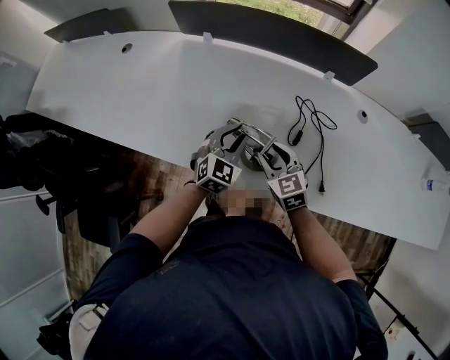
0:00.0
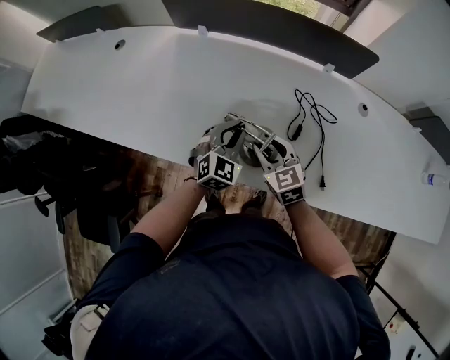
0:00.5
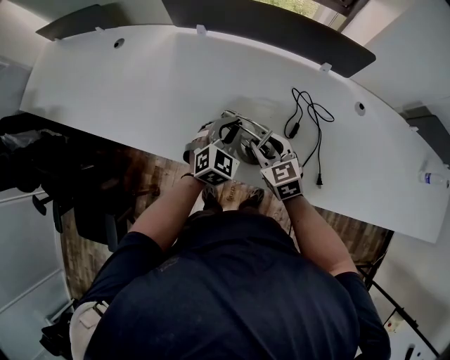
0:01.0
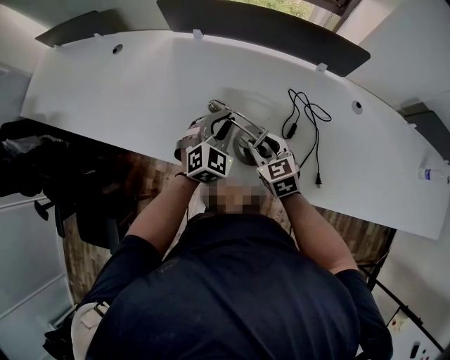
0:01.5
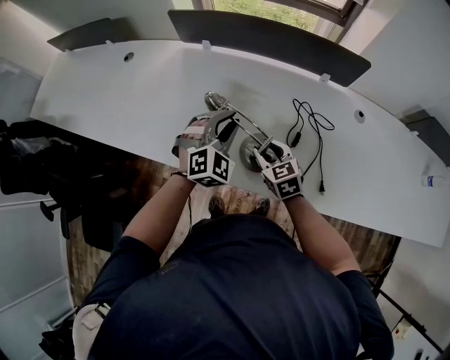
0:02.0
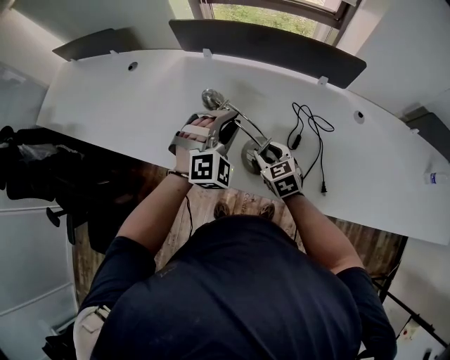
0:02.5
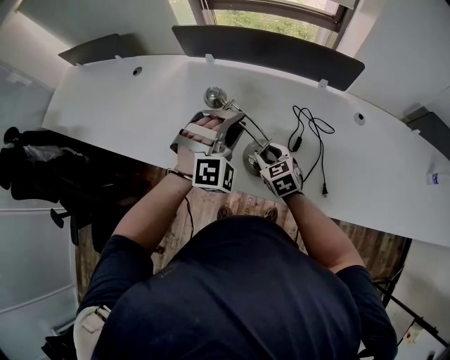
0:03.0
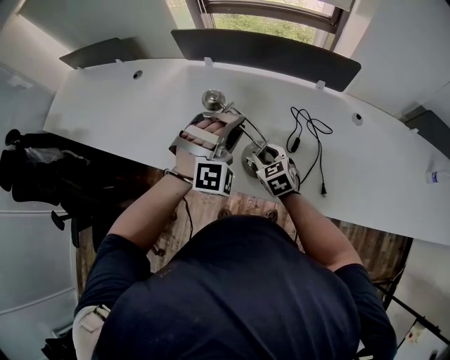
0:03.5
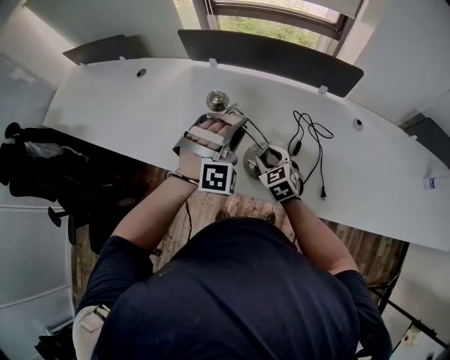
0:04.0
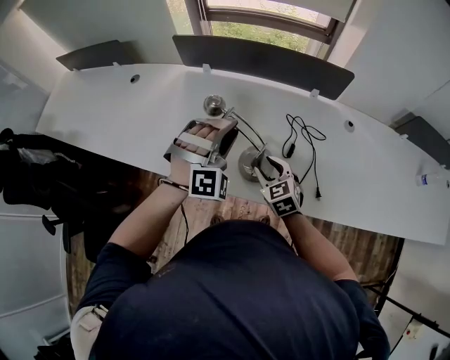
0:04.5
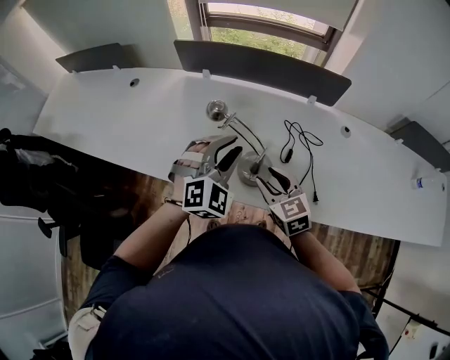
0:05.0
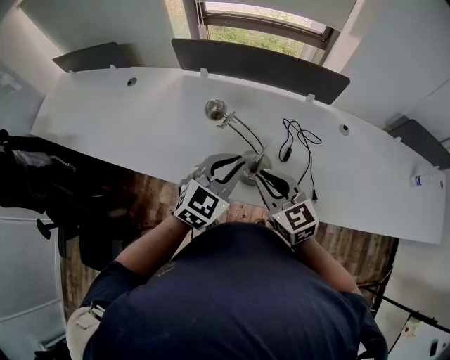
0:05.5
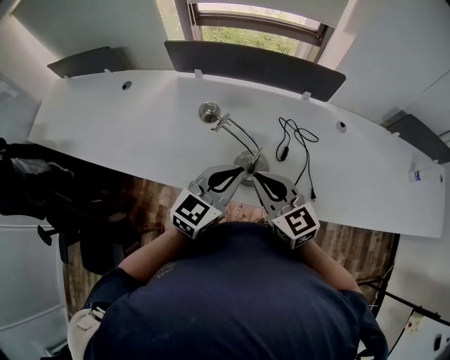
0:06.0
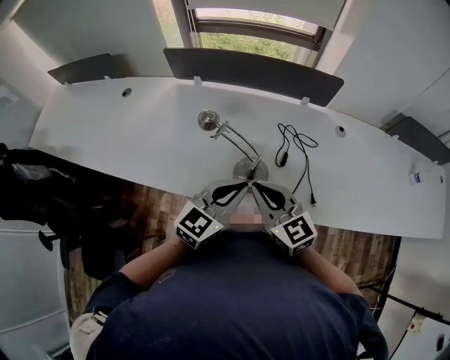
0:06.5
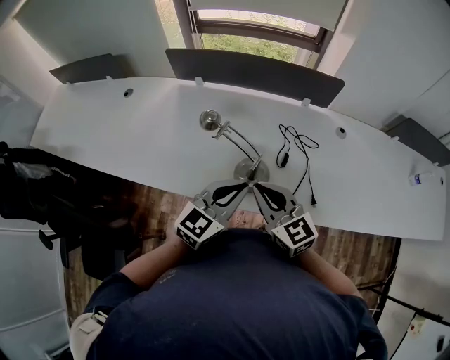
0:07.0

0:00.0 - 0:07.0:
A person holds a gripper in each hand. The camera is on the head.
0:00.0 - 0:02.0: The left gripper is displaced upward by some 5 cm, and turns by about 30 degrees.
0:02.0 - 0:03.5: The left gripper goes about 5 cm upward, and swivels roughly 30 degrees.
0:03.5 - 0:05.0: The right gripper heads upward and backward, covering some 15 cm. The left gripper moves approximately 5 cm, and changes its angle by roughly 30 degrees.
0:05.0 - 0:07.0: The left gripper goes approximately 5 cm backward, rotates around the line of its fingers by approximately 50 degrees, counterclockwise from behind, and closes its fingers, while the right gripper travels upward by approximately 10 cm, and closes its fingers.

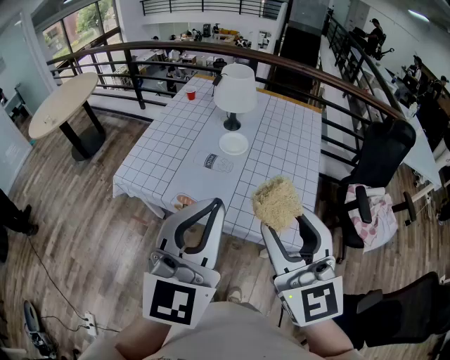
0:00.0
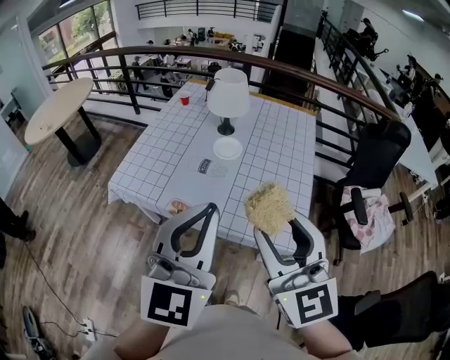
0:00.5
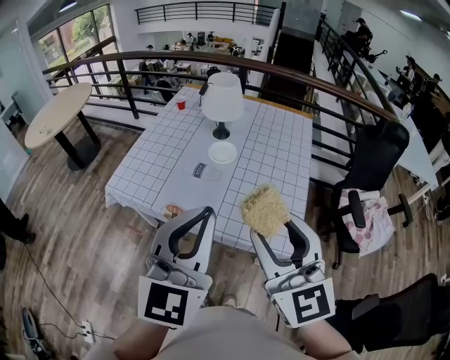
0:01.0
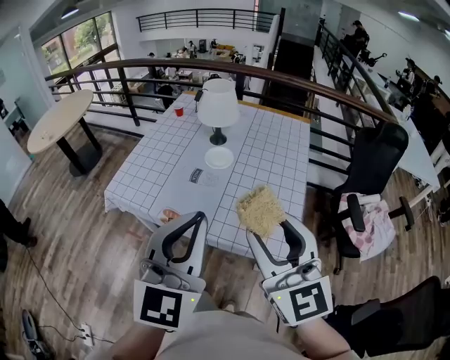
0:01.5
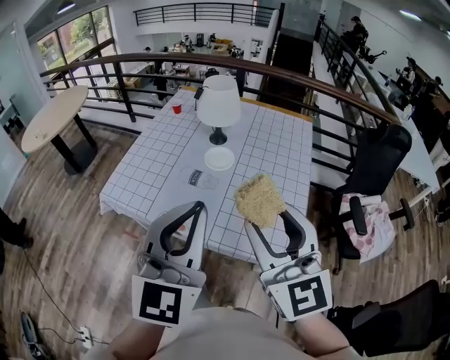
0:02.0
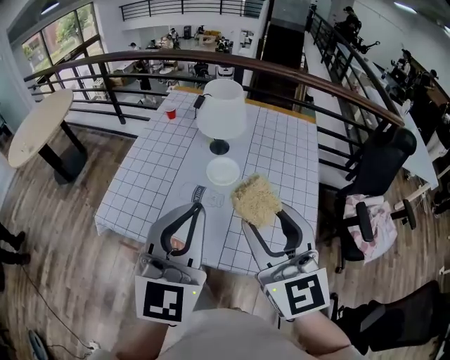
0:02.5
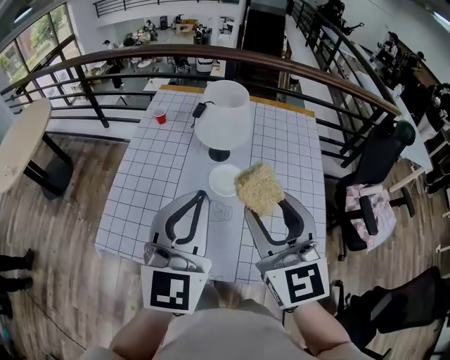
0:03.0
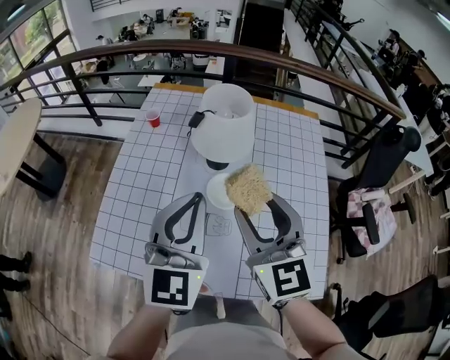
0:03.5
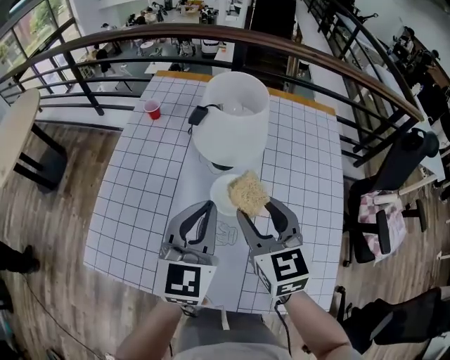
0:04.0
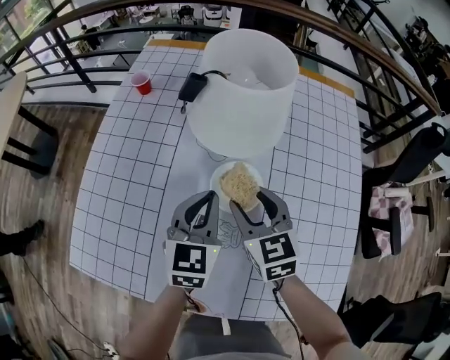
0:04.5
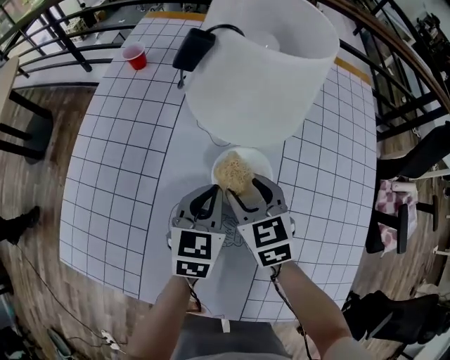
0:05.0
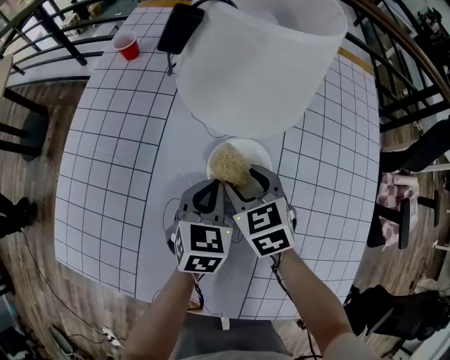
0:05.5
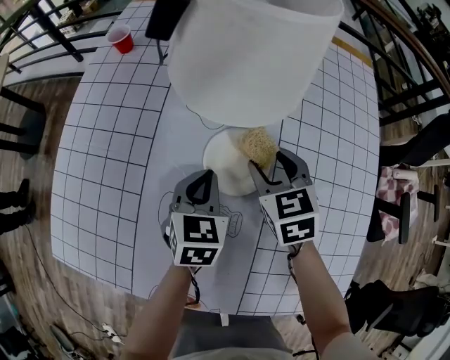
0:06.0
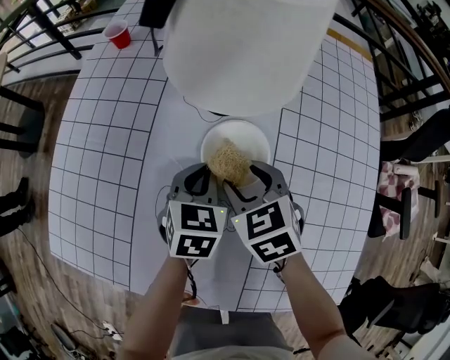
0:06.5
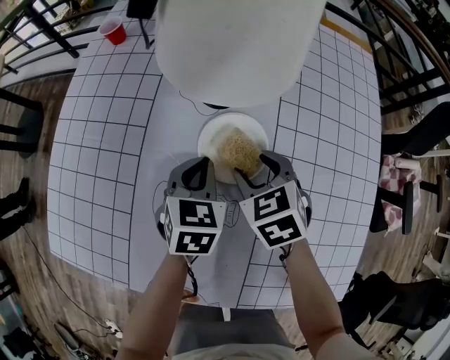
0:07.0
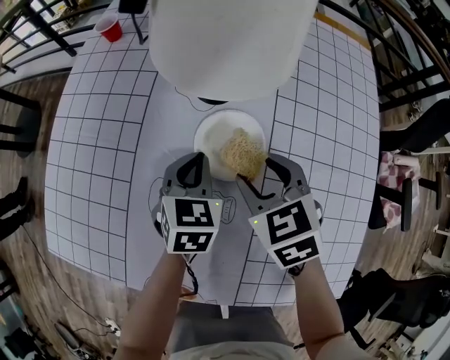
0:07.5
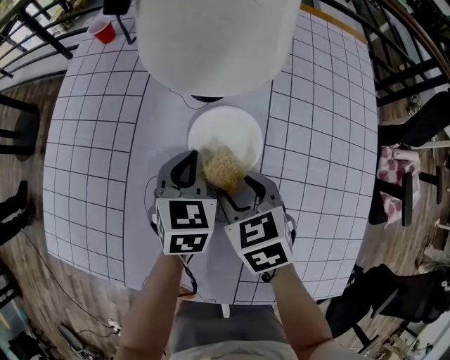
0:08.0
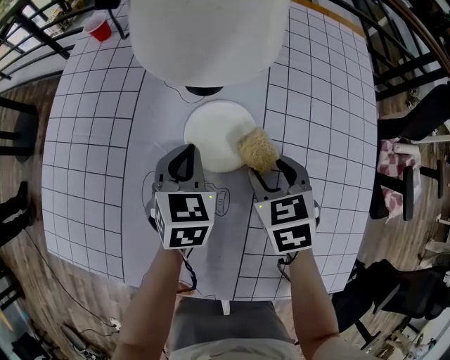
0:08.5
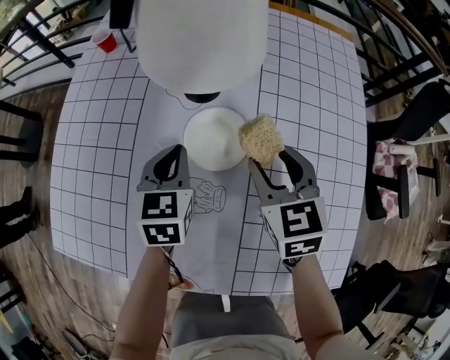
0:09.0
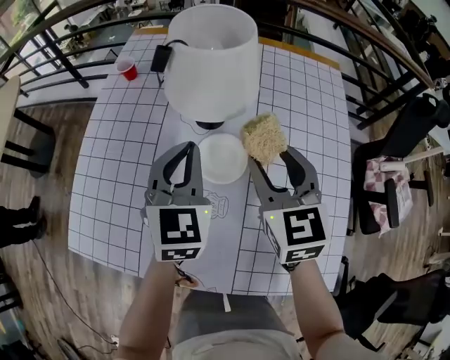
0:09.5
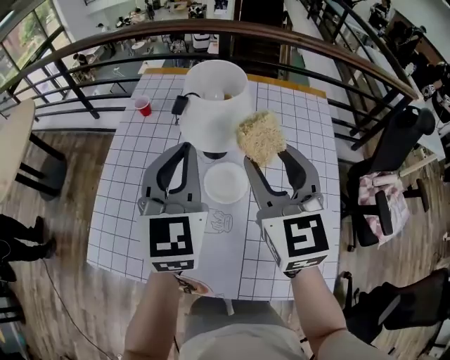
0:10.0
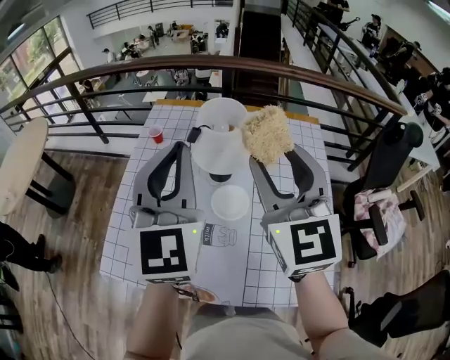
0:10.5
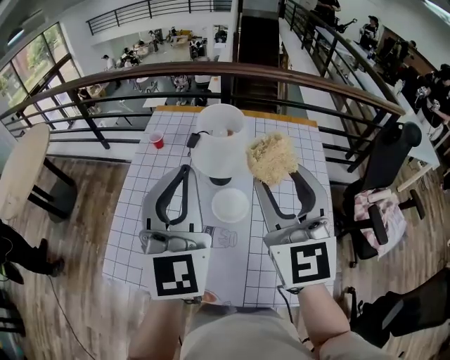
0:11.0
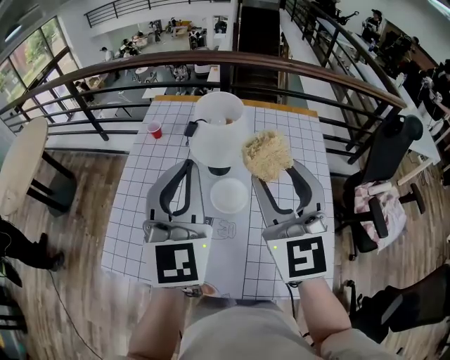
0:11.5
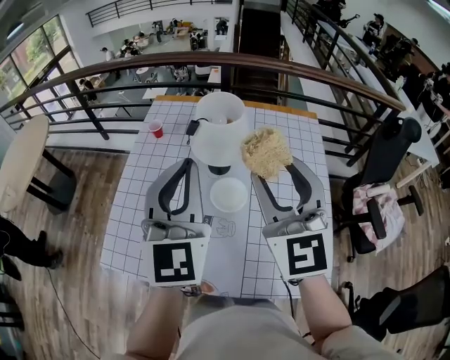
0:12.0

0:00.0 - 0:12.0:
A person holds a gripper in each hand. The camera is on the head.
0:00.0 - 0:02.0: Both grippers move forward, about 5 cm.
0:02.0 - 0:04.0: Both grippers travel together forward and downward, about 40 cm. The right gripper swivels approximately 30 degrees.
0:04.0 - 0:06.0: The left gripper heads downward, covering about 30 cm, and turns by some 30 degrees. Meanwhile the right gripper travels downward and forward by approximately 25 cm, and turns by some 20 degrees.
0:06.0 - 0:08.0: The right gripper moves backward, roughly 10 cm.
0:08.0 - 0:10.0: The grippers both shift upward by some 35 cm. The right gripper angles its fingers upward, by some 40 degrees. The left gripper tips its fingers upward by roughly 30 degrees.
0:10.0 - 0:12.0: The grippers both shift upward and backward by approximately 15 cm.

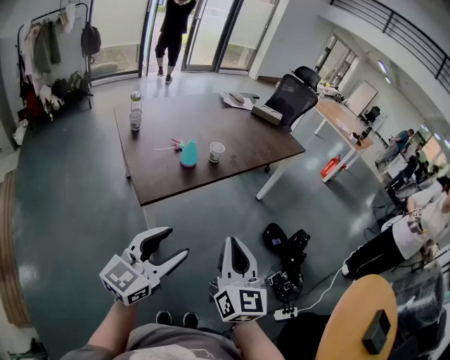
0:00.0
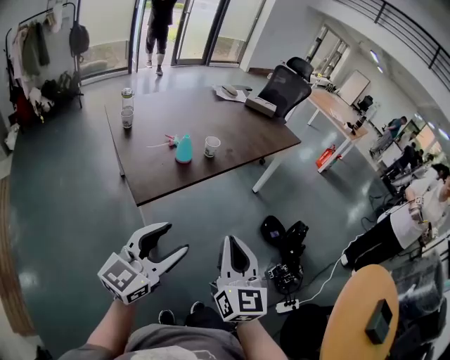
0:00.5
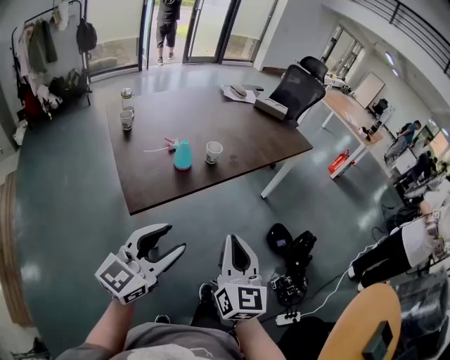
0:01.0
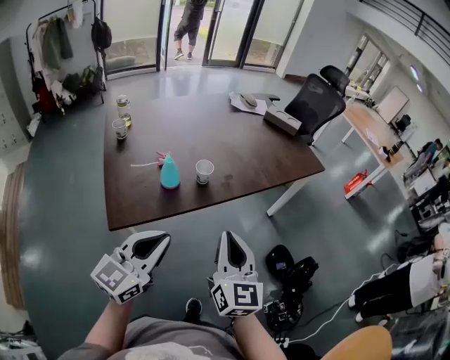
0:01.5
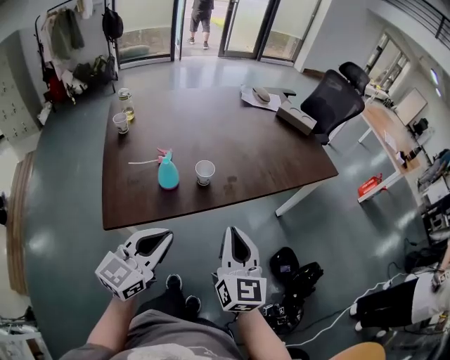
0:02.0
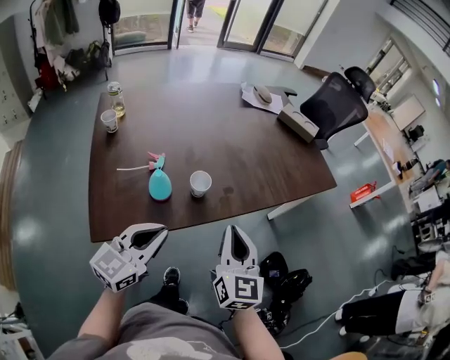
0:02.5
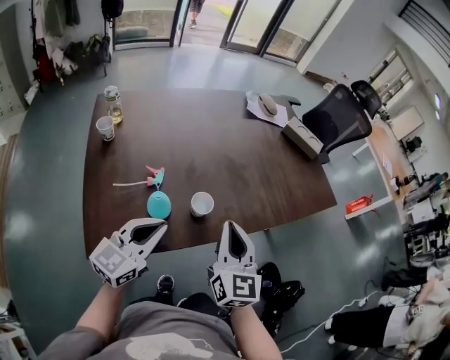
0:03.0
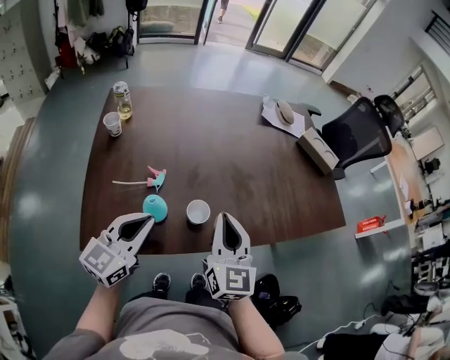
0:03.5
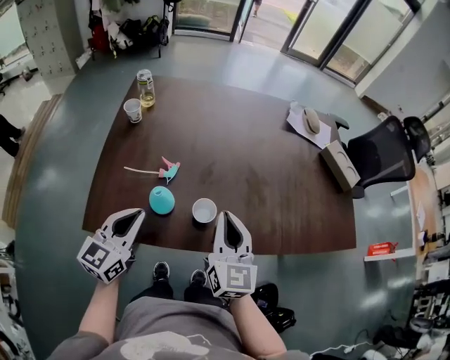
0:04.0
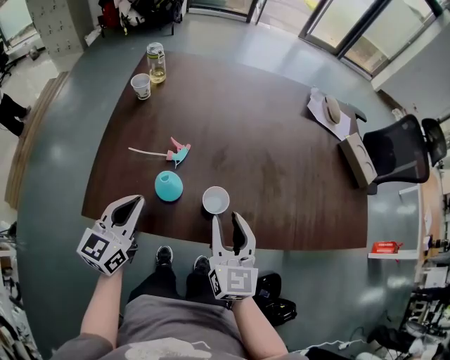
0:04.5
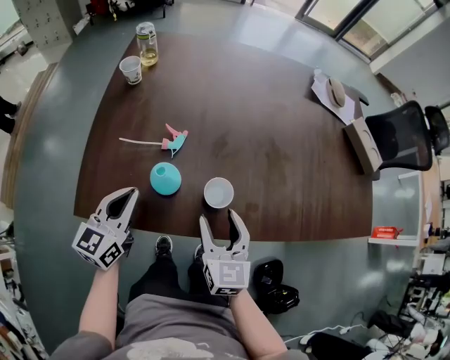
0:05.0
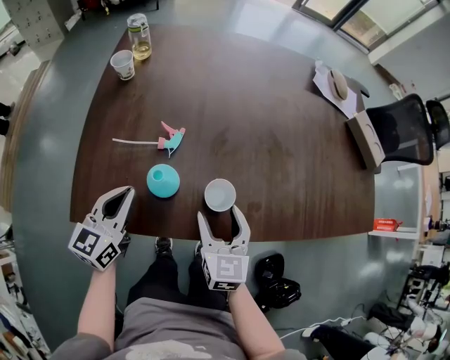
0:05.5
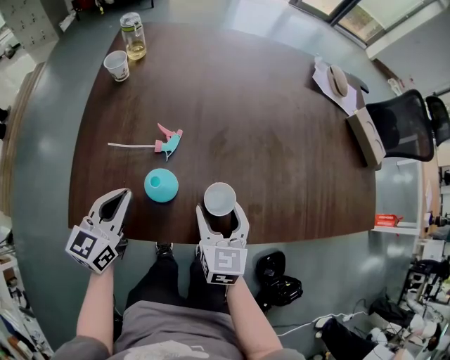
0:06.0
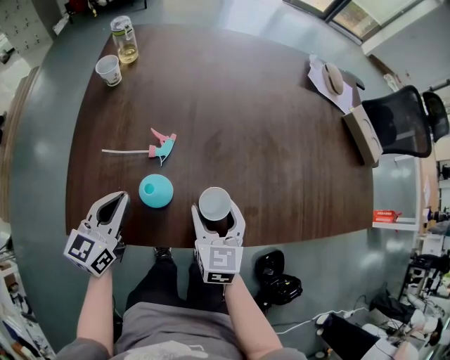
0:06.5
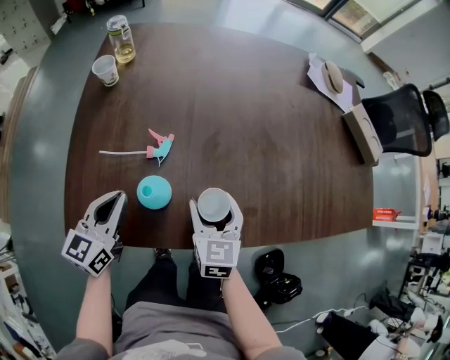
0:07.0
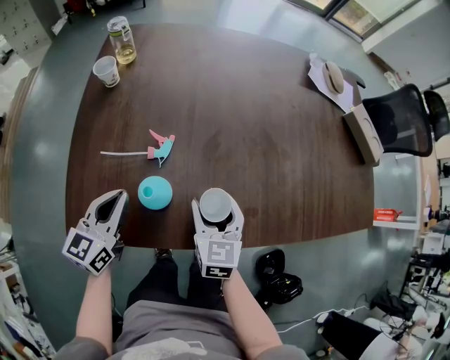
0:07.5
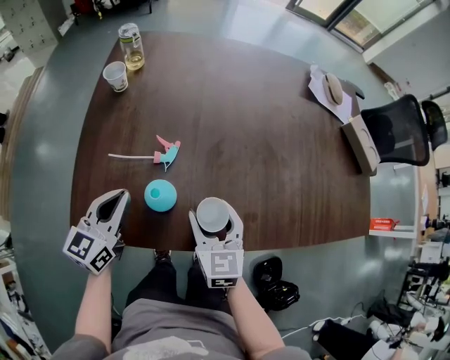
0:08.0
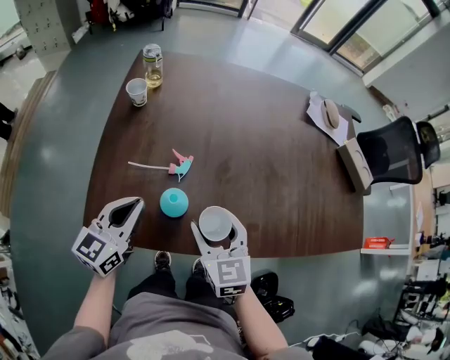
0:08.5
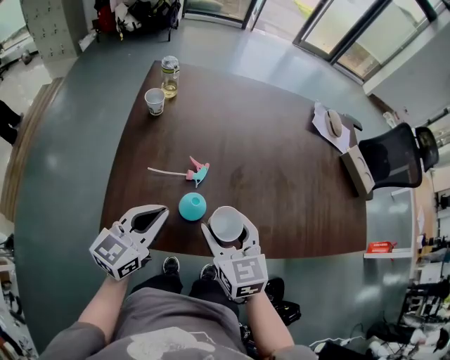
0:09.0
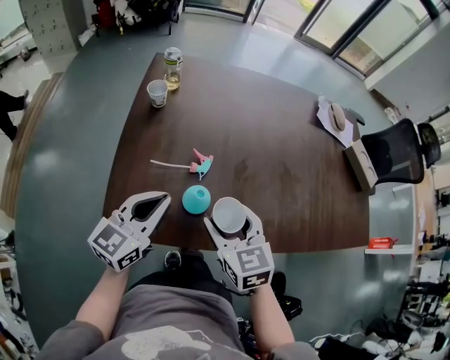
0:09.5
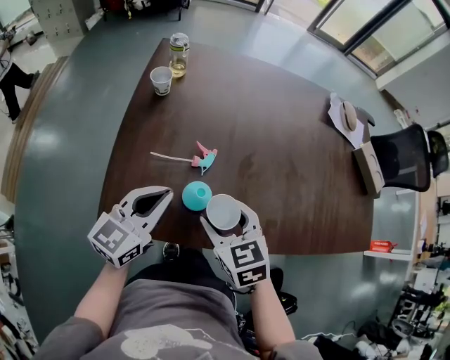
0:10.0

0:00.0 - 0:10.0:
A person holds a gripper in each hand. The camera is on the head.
0:00.0 - 0:02.0: The two grippers go roughly 30 cm forward. The left gripper closes its fingers.
0:02.0 - 0:04.0: The left gripper shifts by roughly 20 cm, and swivels some 30 degrees, while the right gripper moves some 25 cm.
0:04.0 - 0:06.0: The right gripper is displaced downward by about 15 cm, turns by roughly 20 degrees, and opens. Meanwhile the left gripper heads downward and to the left, covering some 10 cm.
0:06.0 - 0:08.0: The grippers stay close to where they were, moving slightly.
0:08.0 - 0:10.0: The left gripper heads upward, covering roughly 5 cm. Meanwhile the right gripper goes about 10 cm to the left and upward, and turns by about 20 degrees.
